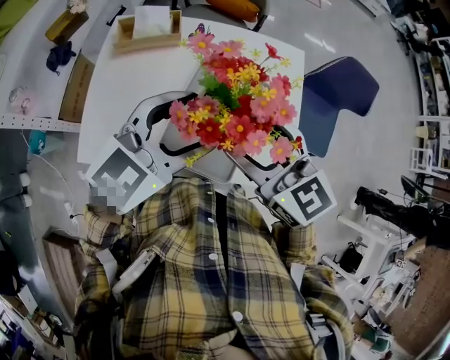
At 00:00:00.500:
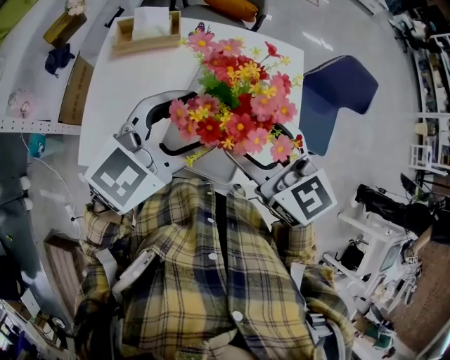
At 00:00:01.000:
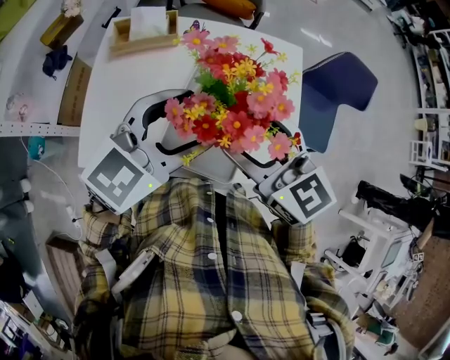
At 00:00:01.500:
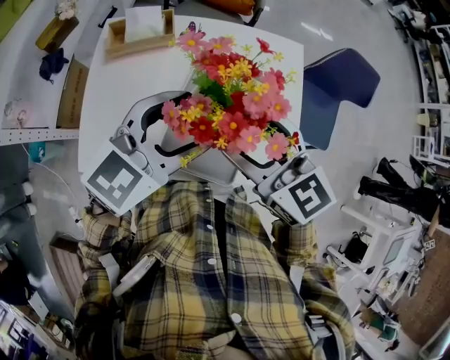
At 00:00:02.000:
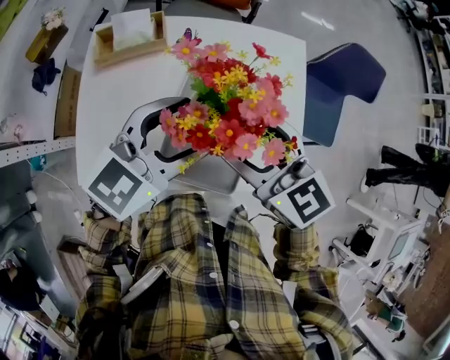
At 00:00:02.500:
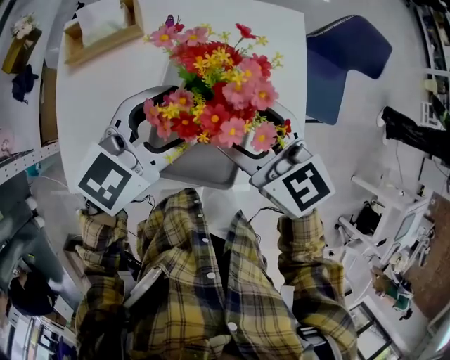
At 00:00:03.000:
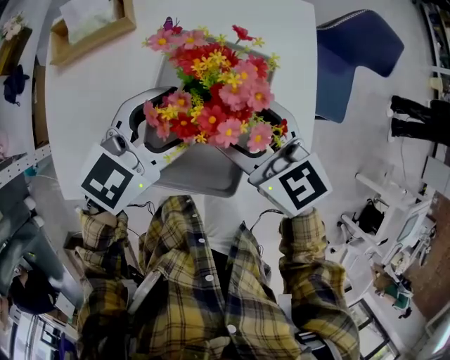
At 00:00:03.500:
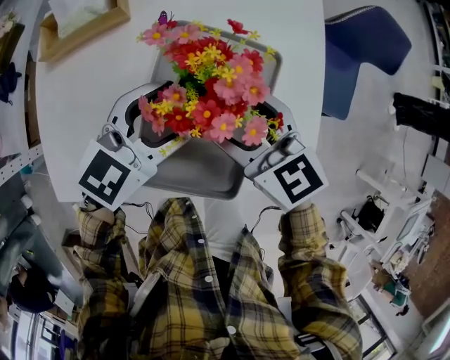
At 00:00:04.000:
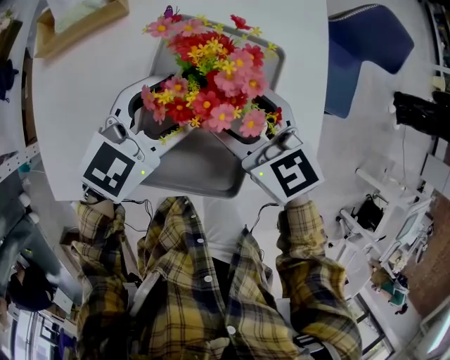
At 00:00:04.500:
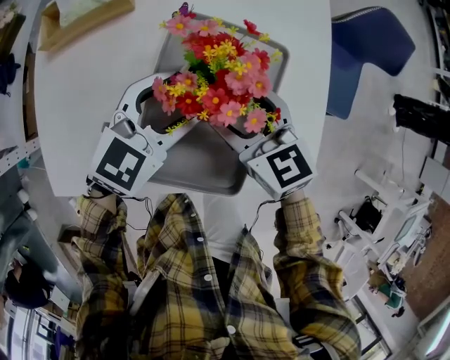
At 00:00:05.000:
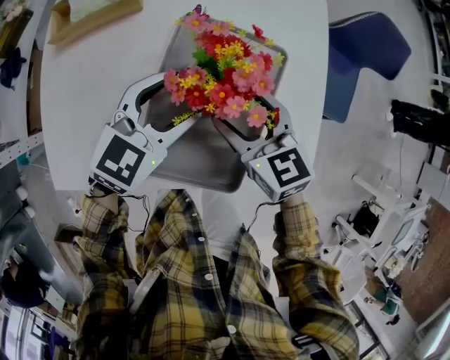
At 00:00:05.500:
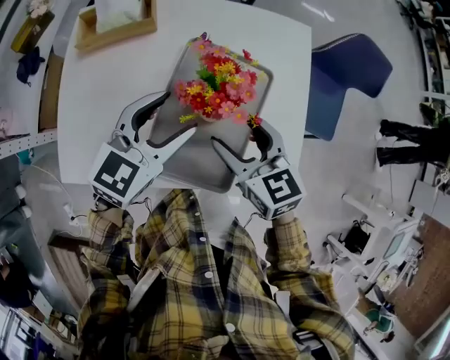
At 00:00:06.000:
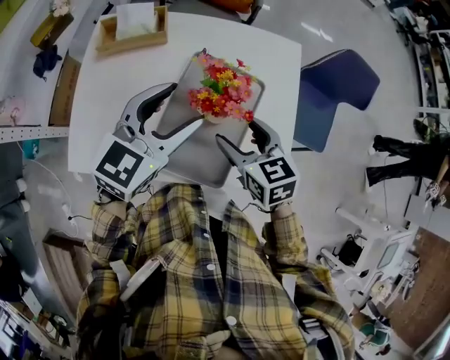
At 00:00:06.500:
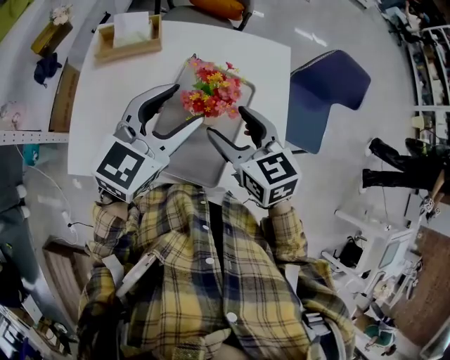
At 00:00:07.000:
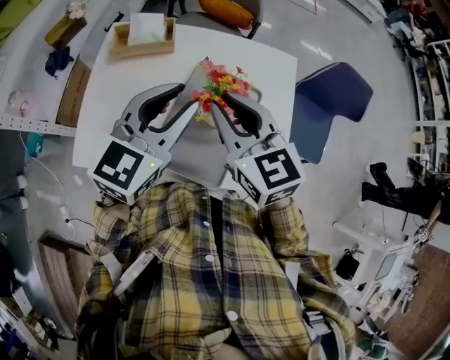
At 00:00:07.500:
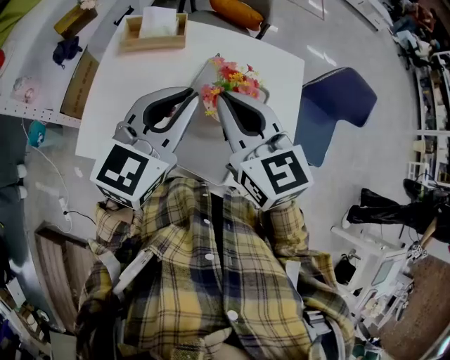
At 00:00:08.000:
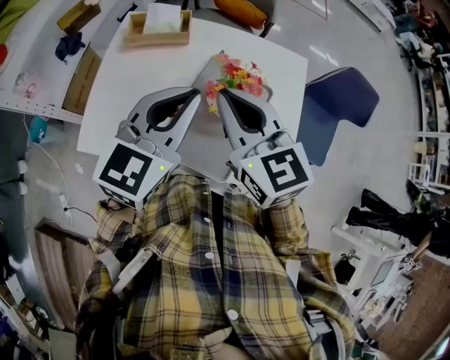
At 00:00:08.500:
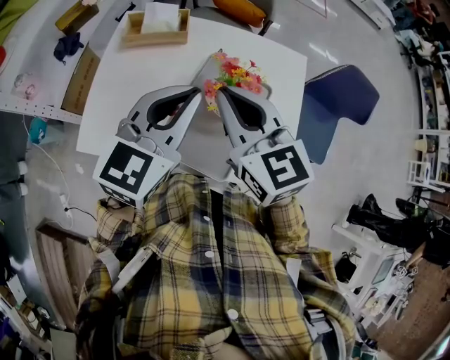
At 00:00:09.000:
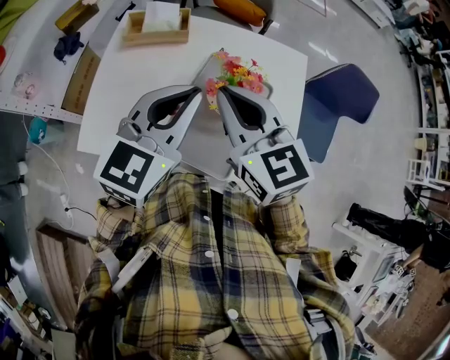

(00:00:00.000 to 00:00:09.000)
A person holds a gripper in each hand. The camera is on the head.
00:00:00.000 - 00:00:04.500: The grippers move only a little.
00:00:04.500 - 00:00:07.000: Both grippers move upward, about 25 cm. The right gripper closes, while the left gripper rotates some 30 degrees, and closes.
00:00:07.000 - 00:00:09.000: The left gripper closes up.

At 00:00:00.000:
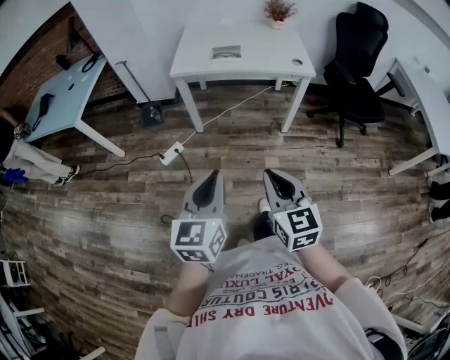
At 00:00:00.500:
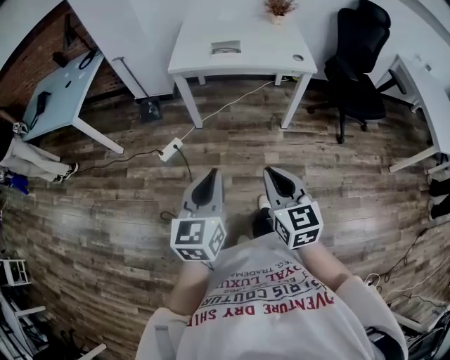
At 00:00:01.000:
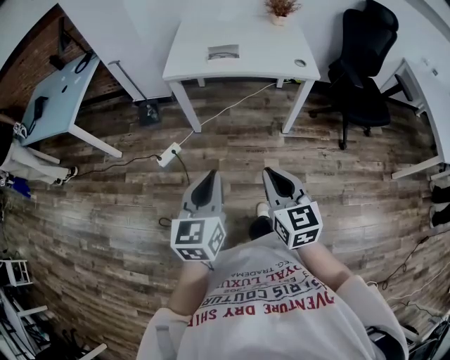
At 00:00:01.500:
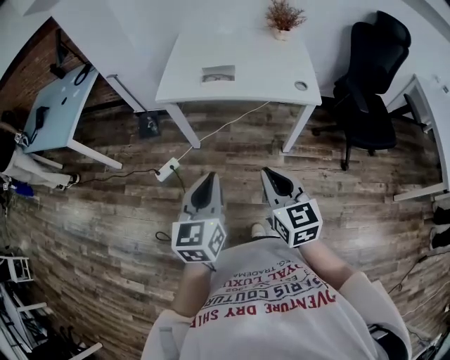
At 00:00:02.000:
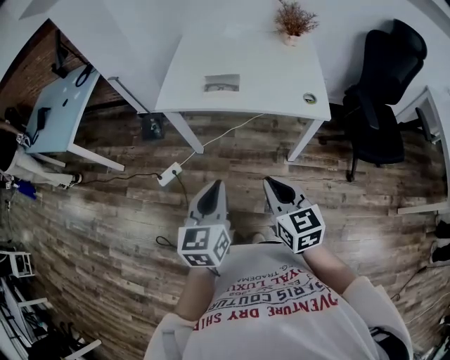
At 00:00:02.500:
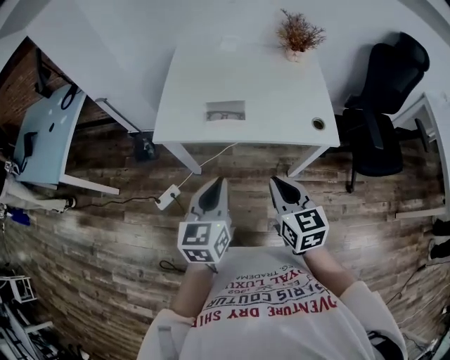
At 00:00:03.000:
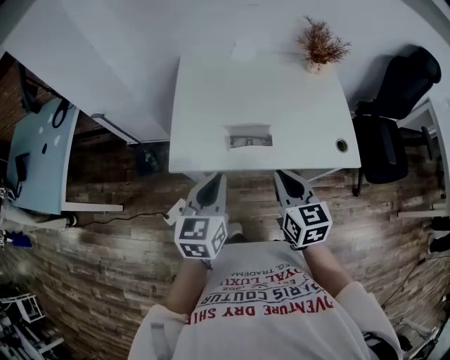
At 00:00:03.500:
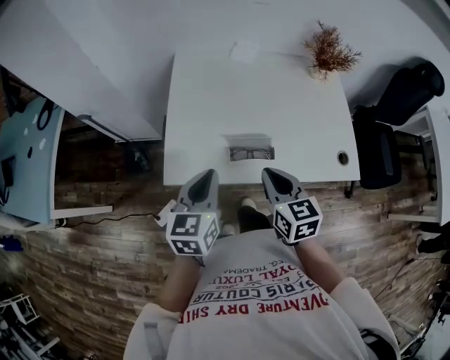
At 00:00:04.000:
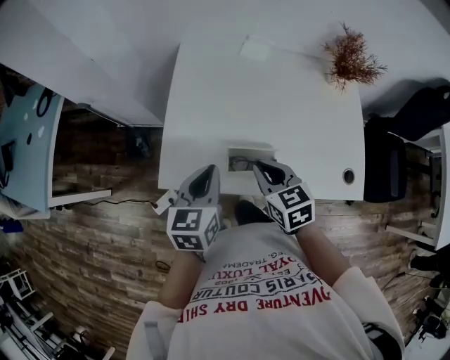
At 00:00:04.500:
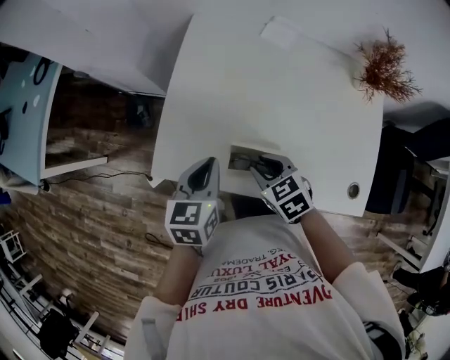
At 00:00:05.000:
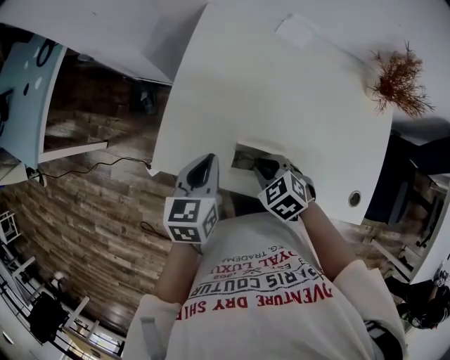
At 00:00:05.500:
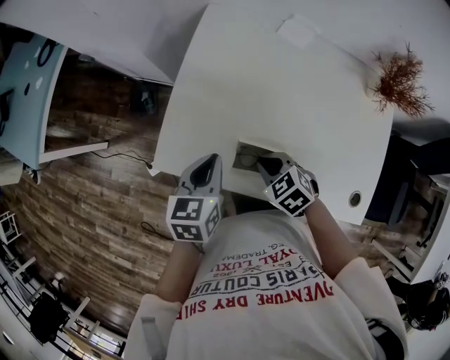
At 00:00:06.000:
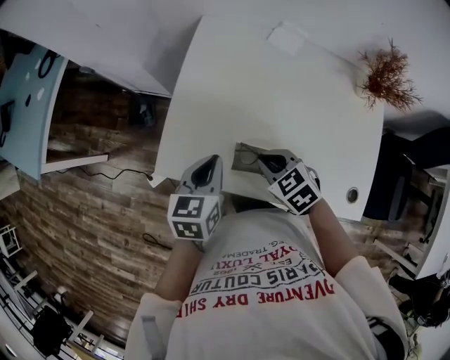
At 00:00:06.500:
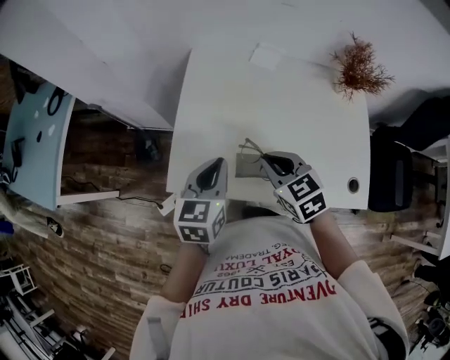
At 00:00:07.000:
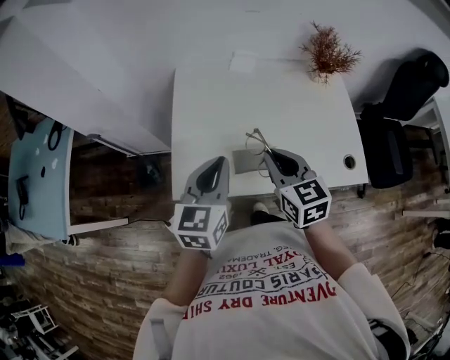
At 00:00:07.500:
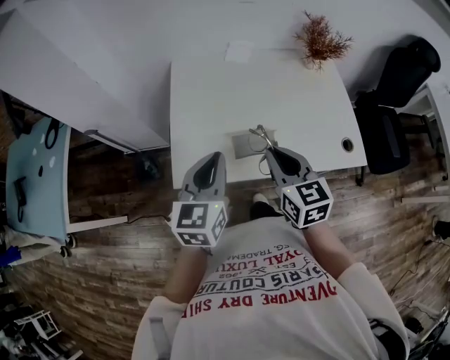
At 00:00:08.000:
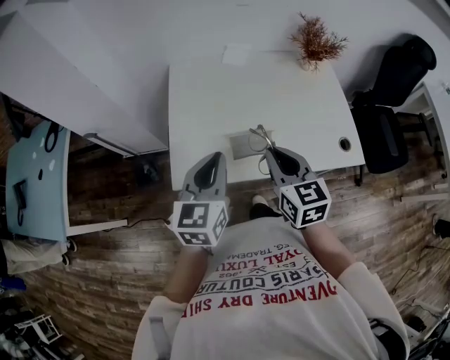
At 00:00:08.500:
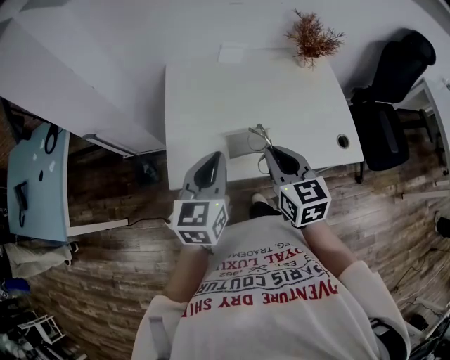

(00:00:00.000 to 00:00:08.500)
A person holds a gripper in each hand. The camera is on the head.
00:00:00.000 - 00:00:02.000: Both grippers travel together forward and to the right, approximately 30 cm.
00:00:02.000 - 00:00:04.000: The two grippers travel together, forward, approximately 50 cm.
00:00:04.000 - 00:00:06.500: The left gripper moves some 5 cm downward and comes back. The right gripper goes downward and returns, approximately 10 cm each way, and opens, then closes once more.
00:00:06.500 - 00:00:08.500: Both grippers travel together backward and upward, about 10 cm. The right gripper turns by approximately 30 degrees.

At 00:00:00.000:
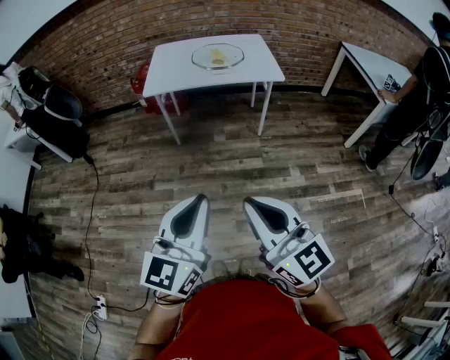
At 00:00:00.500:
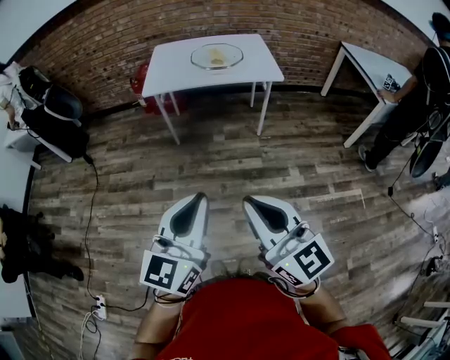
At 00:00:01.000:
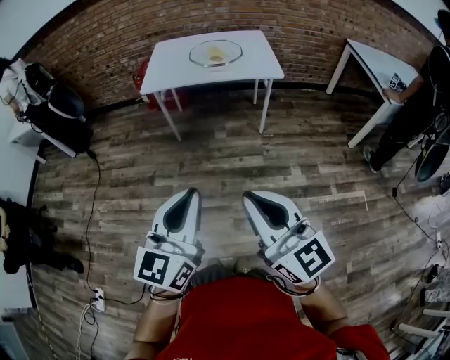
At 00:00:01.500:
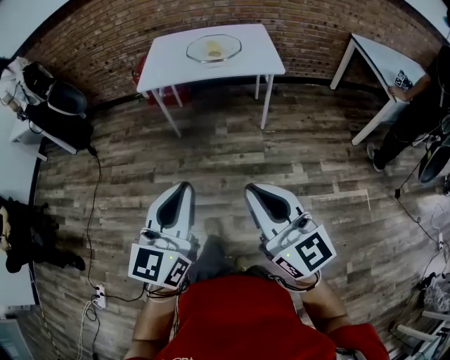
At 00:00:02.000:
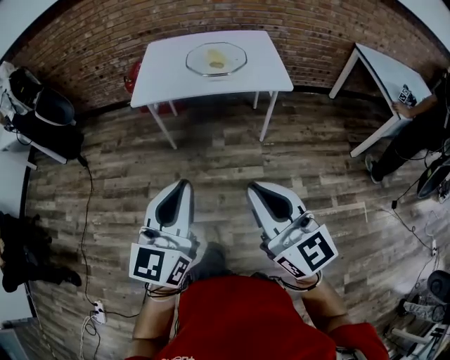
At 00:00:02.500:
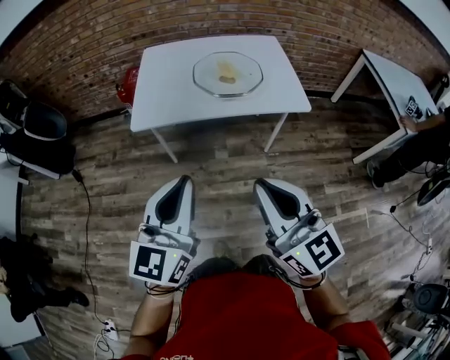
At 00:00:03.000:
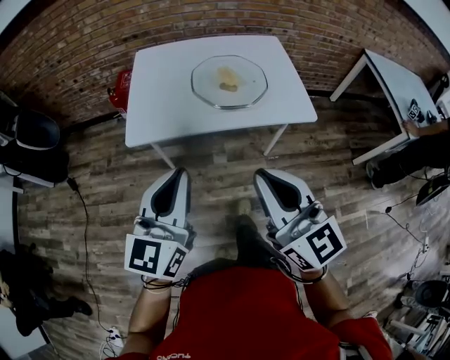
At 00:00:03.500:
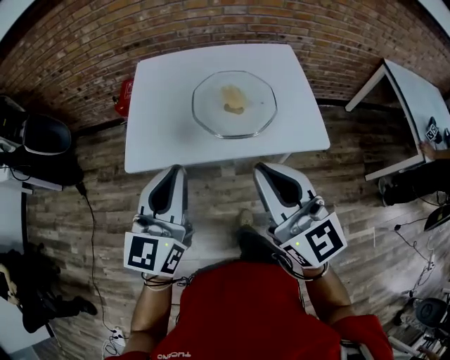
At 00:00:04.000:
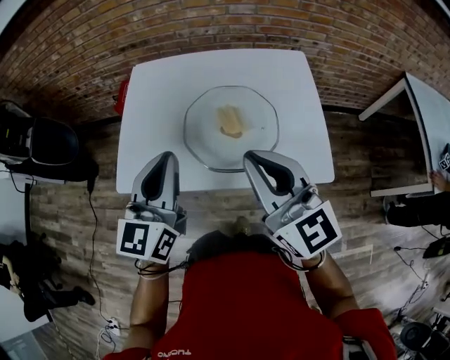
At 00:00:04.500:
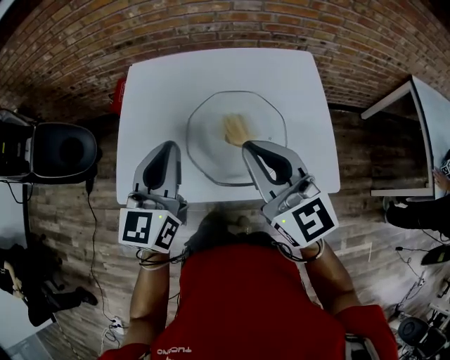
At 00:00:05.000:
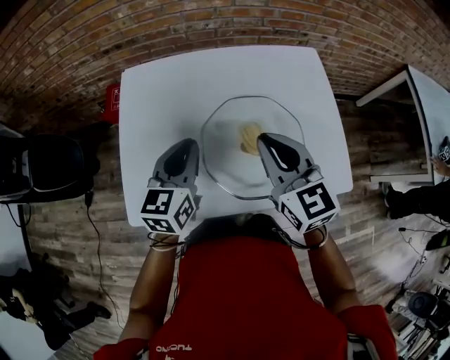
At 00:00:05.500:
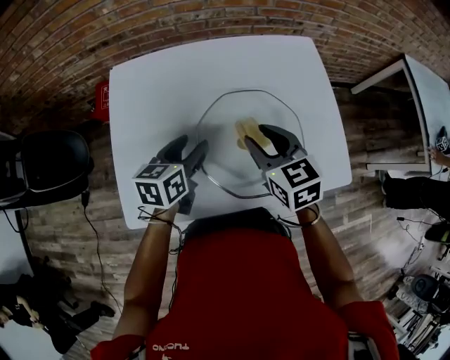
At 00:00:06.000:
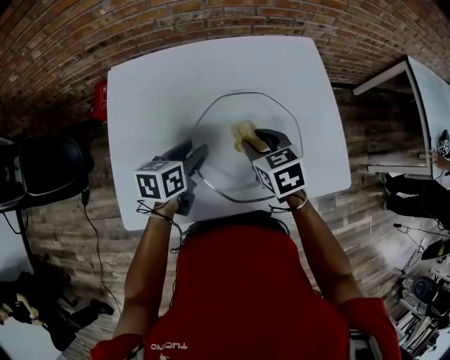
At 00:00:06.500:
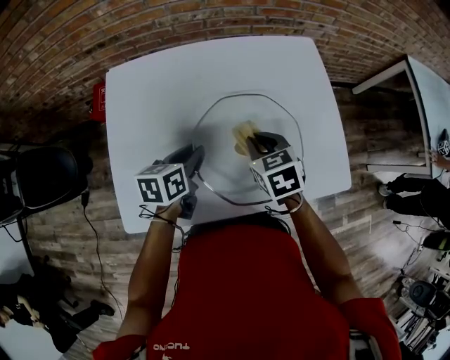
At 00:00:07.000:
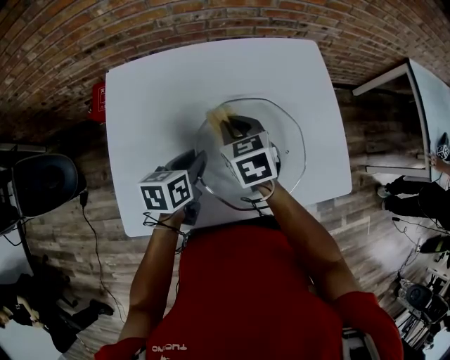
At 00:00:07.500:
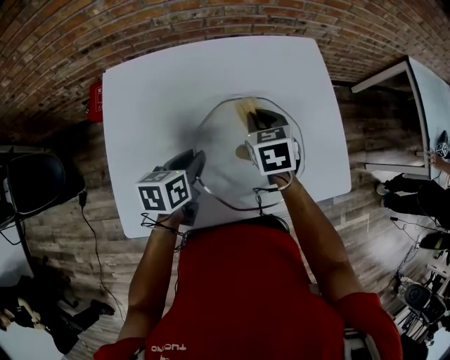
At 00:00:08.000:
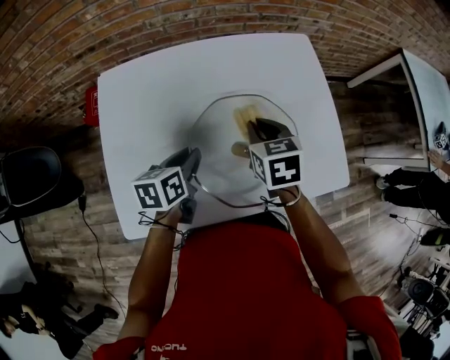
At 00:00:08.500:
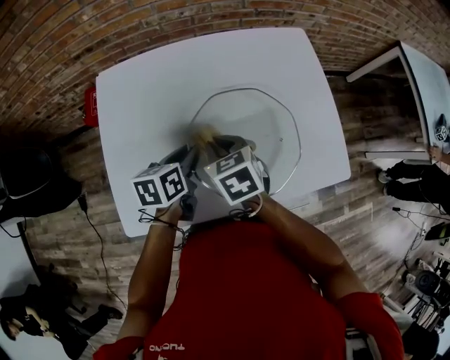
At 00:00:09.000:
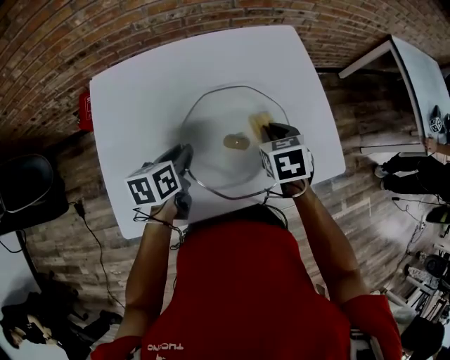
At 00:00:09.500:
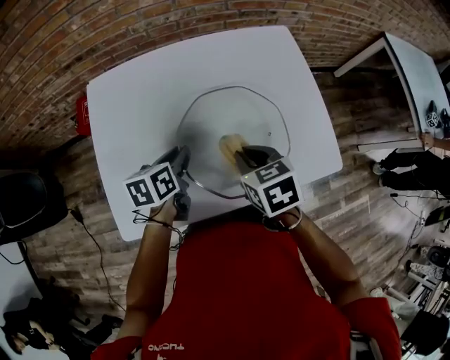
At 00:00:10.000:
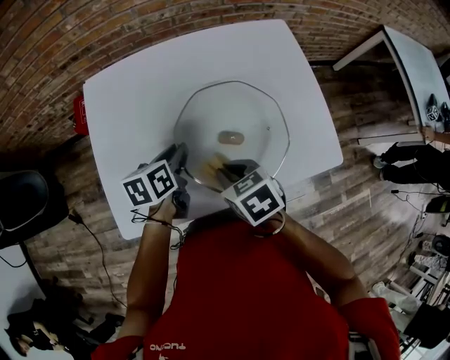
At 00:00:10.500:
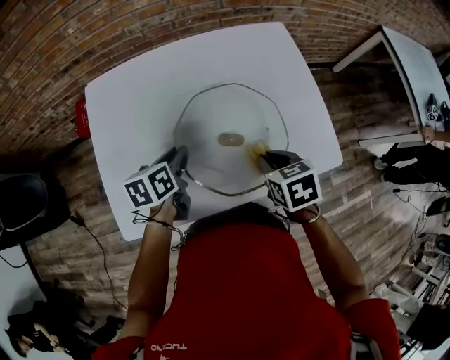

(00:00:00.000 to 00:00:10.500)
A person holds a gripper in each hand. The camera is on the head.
00:00:00.000 - 00:00:02.000: The grippers both shift forward by roughly 20 cm.
00:00:02.000 - 00:00:04.000: The two grippers travel together, forward, roughly 60 cm.
00:00:04.000 - 00:00:06.500: Both grippers travel together downward and forward, some 30 cm. The left gripper points its fingers approximately 30 degrees further downward, and opens, then closes once more. The right gripper tilts its fingers some 50 degrees downward, and opens and closes again.
00:00:06.500 - 00:00:08.500: The right gripper goes roughly 10 cm to the left, and moves some 10 cm forward and comes back.
00:00:08.500 - 00:00:10.500: The right gripper goes left and right, roughly 15 cm each way, reversing 2 times.
